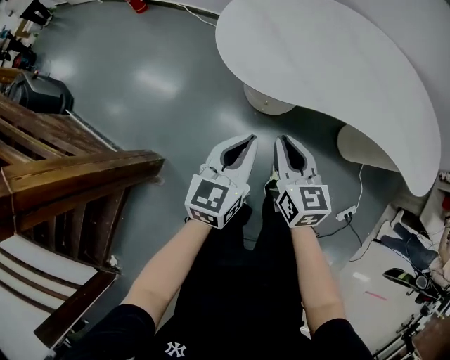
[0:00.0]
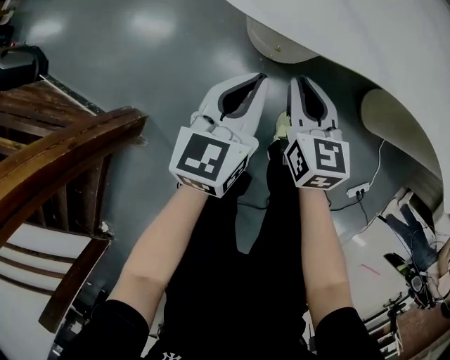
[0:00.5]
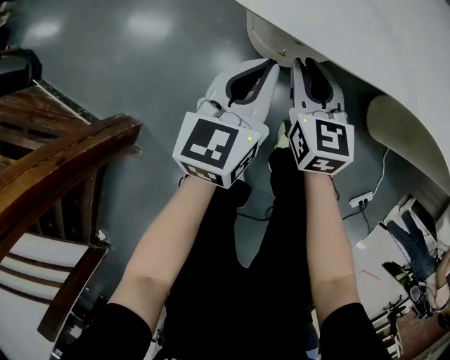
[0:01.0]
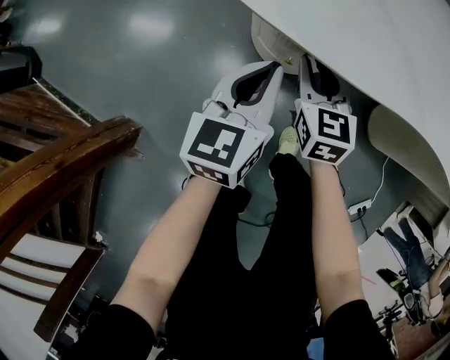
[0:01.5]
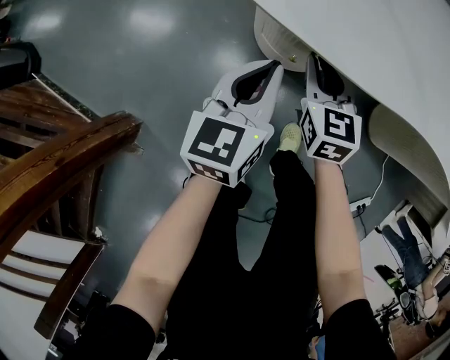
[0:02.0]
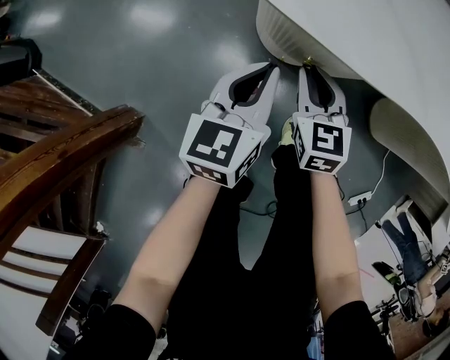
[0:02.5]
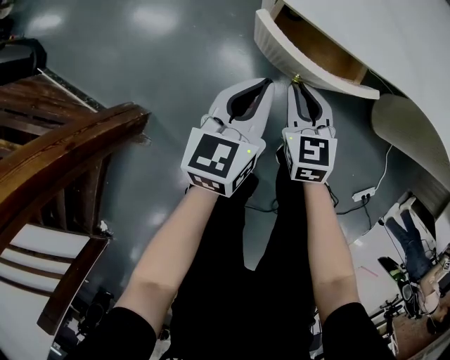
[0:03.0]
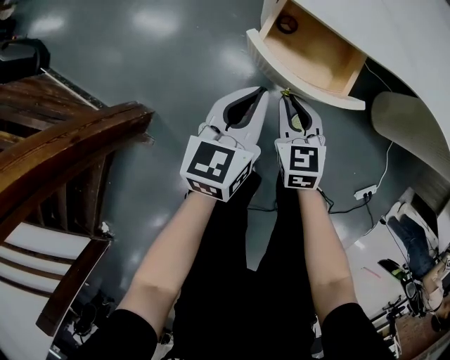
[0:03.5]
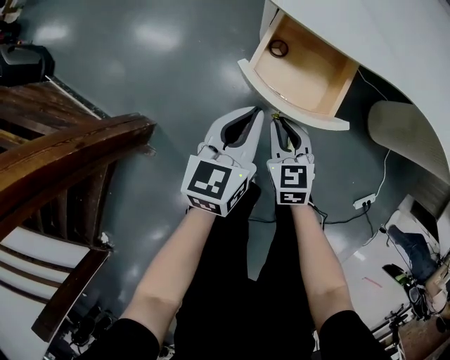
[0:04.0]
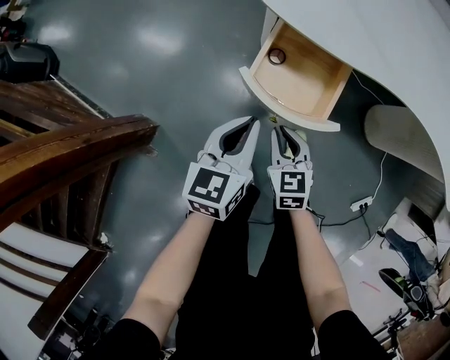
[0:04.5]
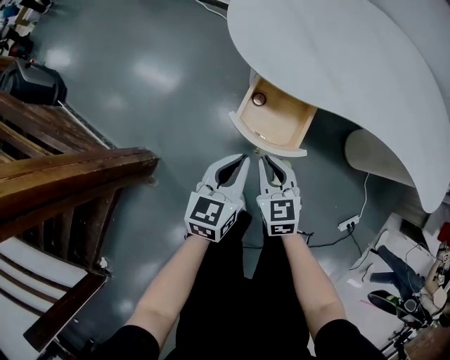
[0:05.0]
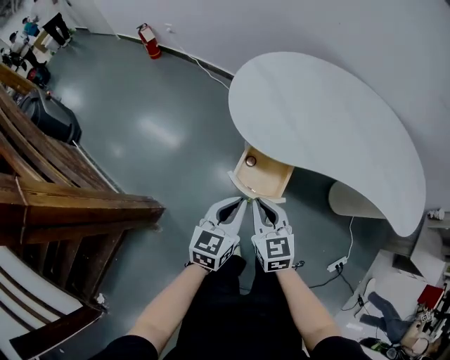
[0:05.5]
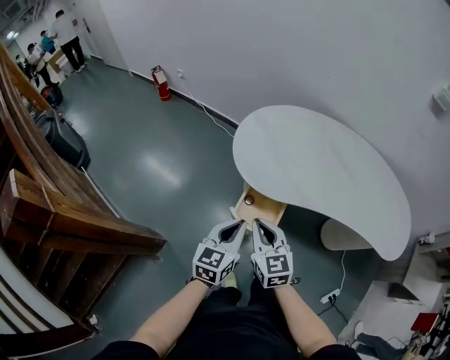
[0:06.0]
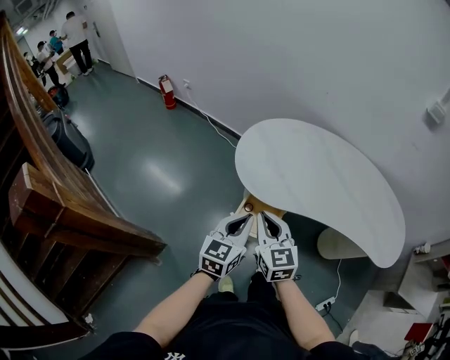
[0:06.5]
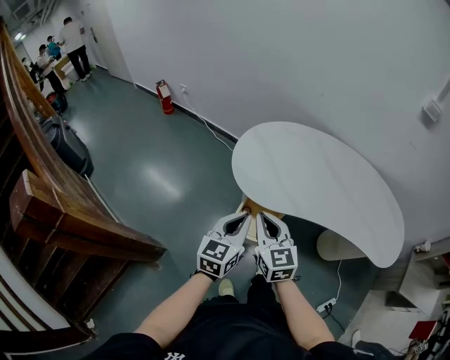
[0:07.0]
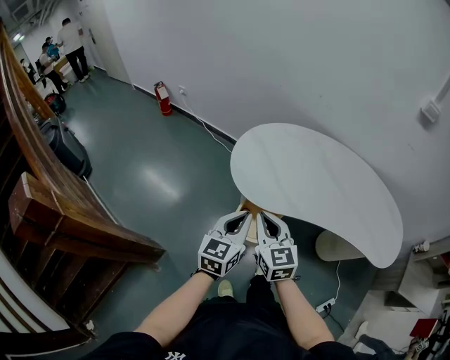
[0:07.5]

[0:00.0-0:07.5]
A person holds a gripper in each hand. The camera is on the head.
0:00.0 to 0:02.0: Both grippers travel together downward and forward, approximately 30 cm.
0:02.0 to 0:04.0: The grippers both shift backward by some 20 cm.
0:04.0 to 0:05.5: Both grippers travel together upward, about 25 cm.
0:05.5 to 0:07.5: The two grippers go approximately 15 cm upward.

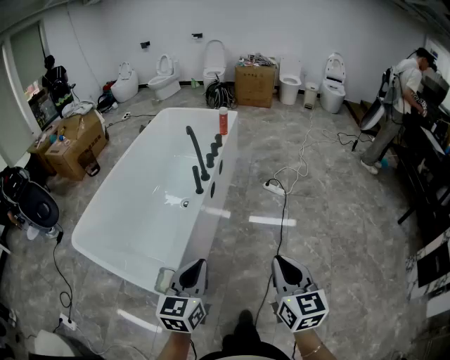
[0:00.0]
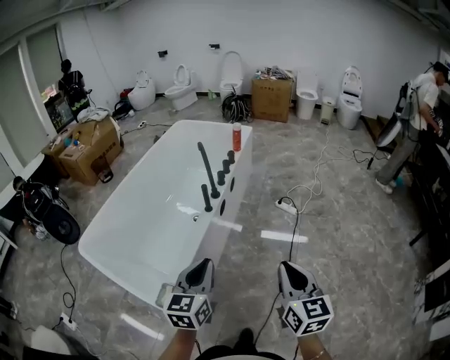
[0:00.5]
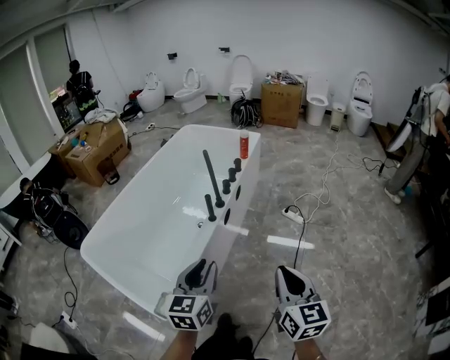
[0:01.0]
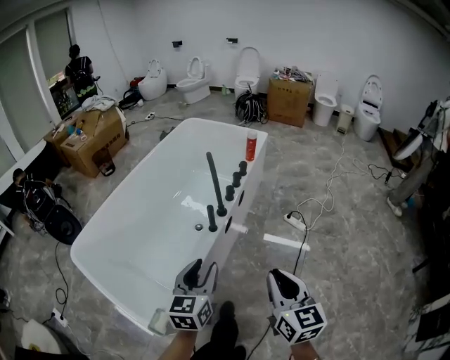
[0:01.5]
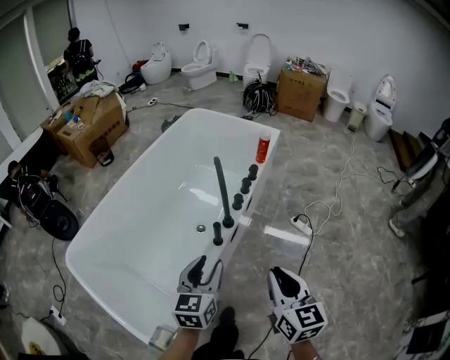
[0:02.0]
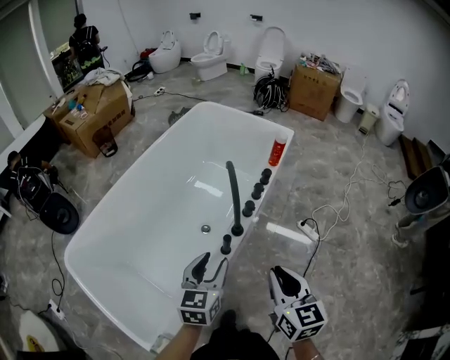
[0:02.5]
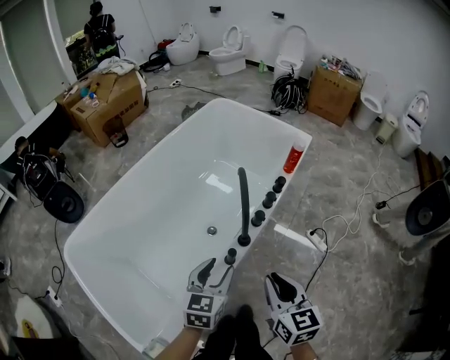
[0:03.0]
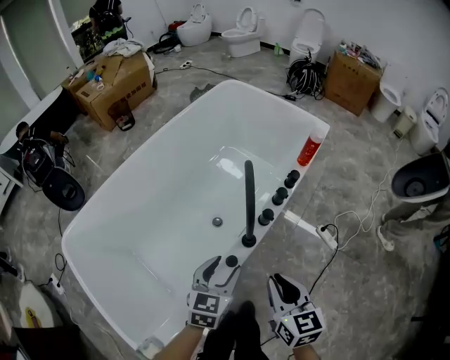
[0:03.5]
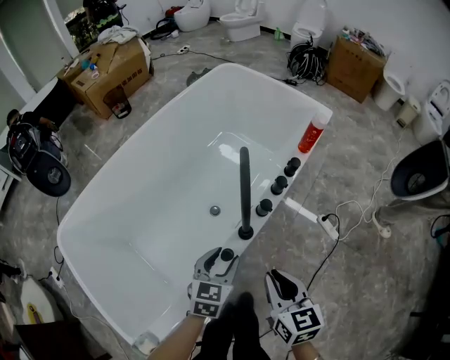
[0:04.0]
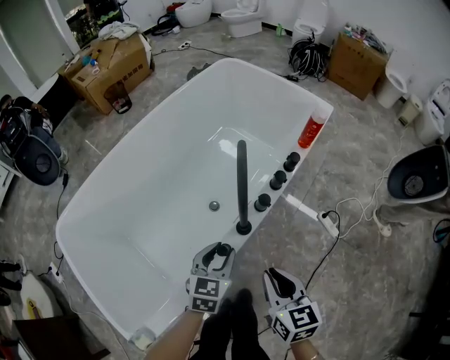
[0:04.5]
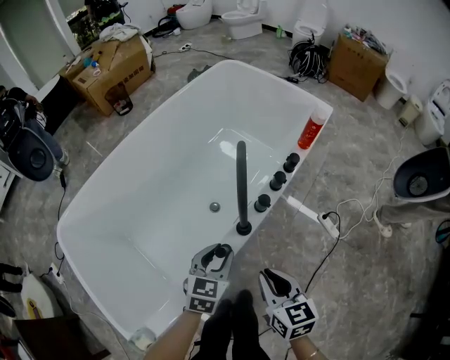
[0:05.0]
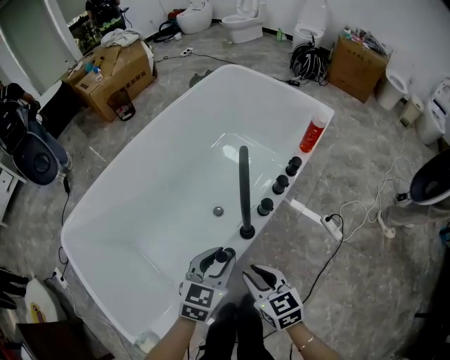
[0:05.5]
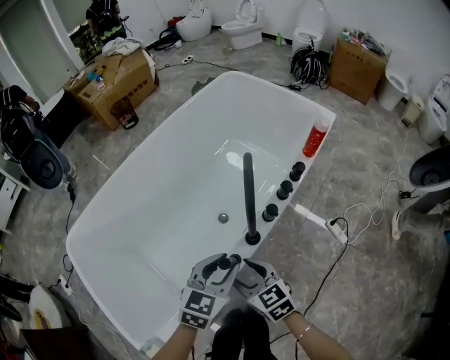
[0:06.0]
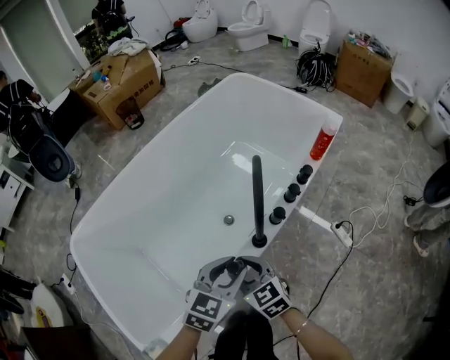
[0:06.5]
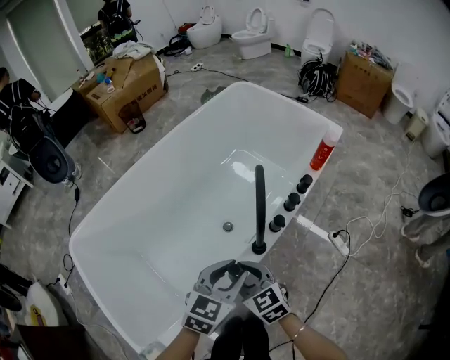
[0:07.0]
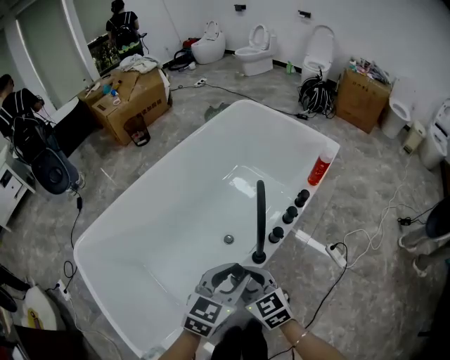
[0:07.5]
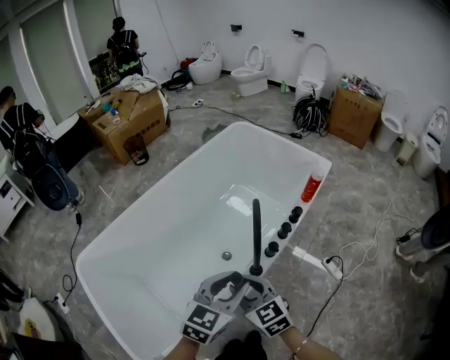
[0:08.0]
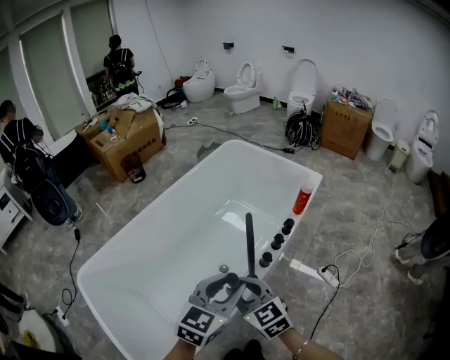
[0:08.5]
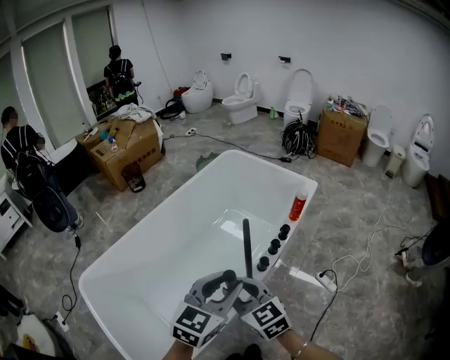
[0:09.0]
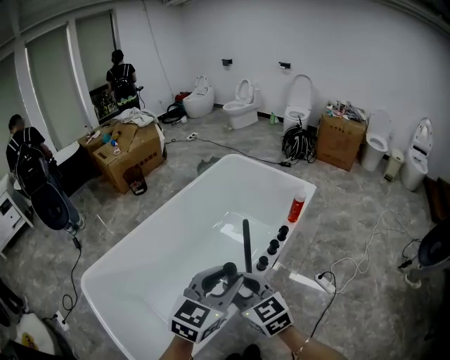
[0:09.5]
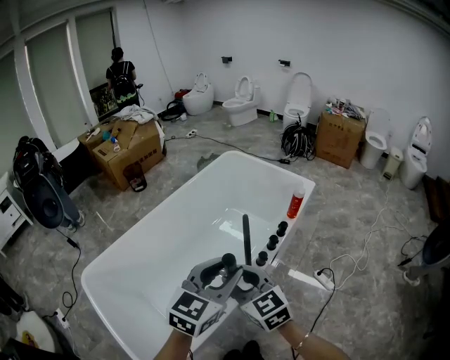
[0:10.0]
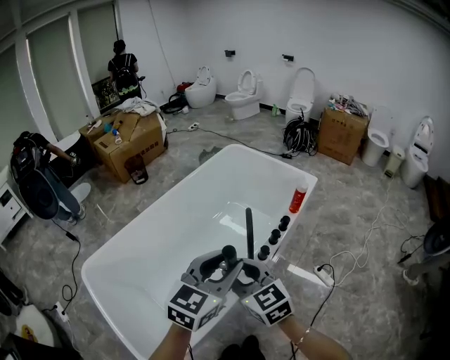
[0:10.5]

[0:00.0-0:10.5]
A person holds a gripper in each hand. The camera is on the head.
0:00.0 to 0:02.0: The two grippers travel together, forward, about 50 cm. The left gripper opens its fingers.
0:02.0 to 0:04.0: Both grippers move forward and downward, approximately 35 cm. The right gripper turns by approximately 20 degrees.
0:04.0 to 0:06.5: The right gripper travels to the left, downward and forward by roughly 15 cm, swivels roughly 30 degrees, and opens.
0:06.5 to 0:08.5: Both grippers travel together upward, some 25 cm.
0:08.5 to 0:10.5: The two grippers go some 10 cm upward and backward.

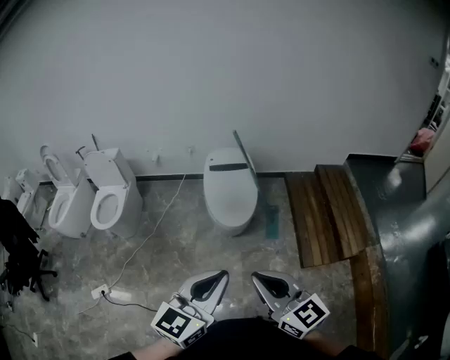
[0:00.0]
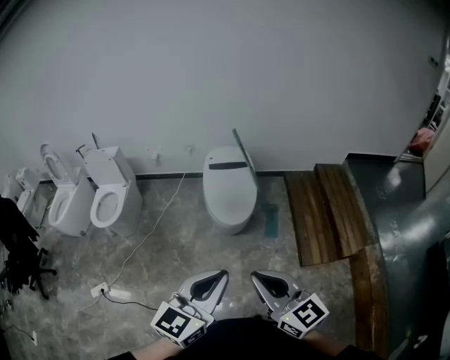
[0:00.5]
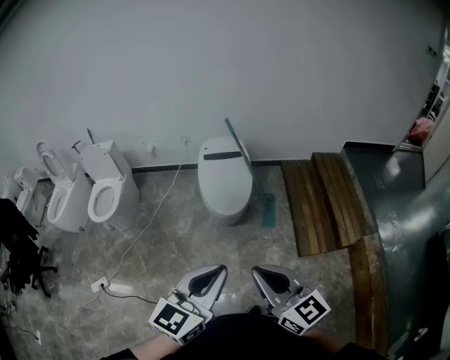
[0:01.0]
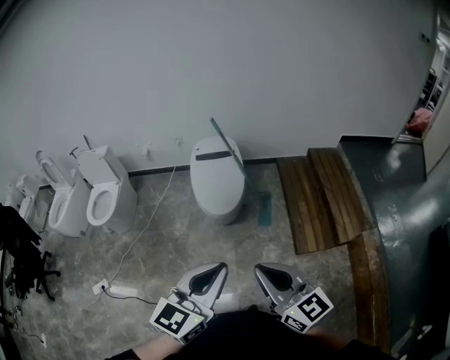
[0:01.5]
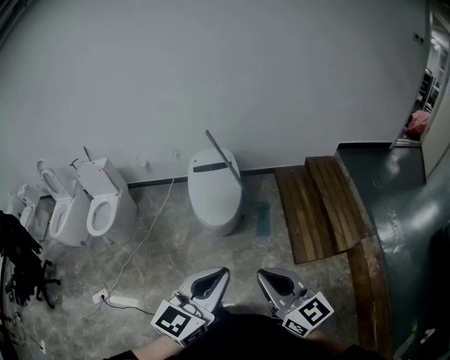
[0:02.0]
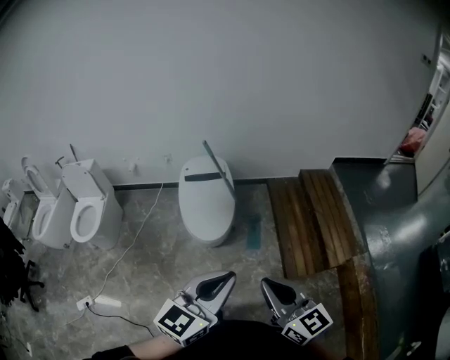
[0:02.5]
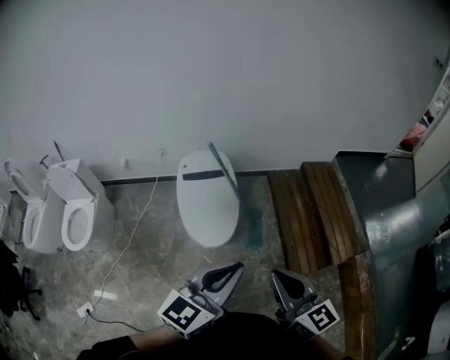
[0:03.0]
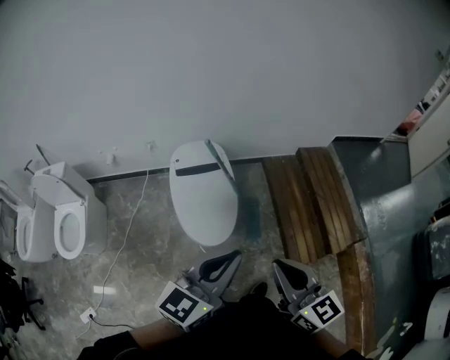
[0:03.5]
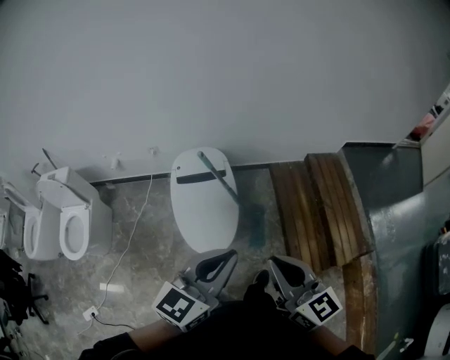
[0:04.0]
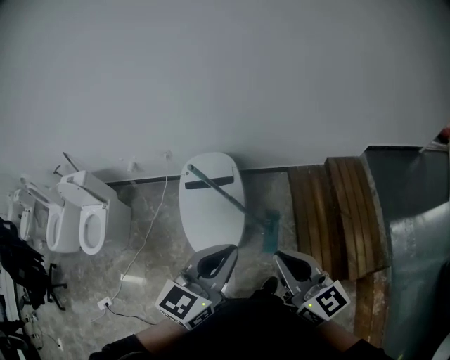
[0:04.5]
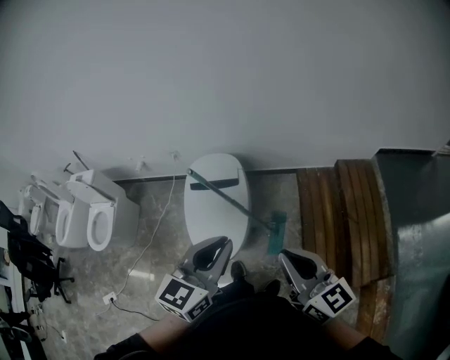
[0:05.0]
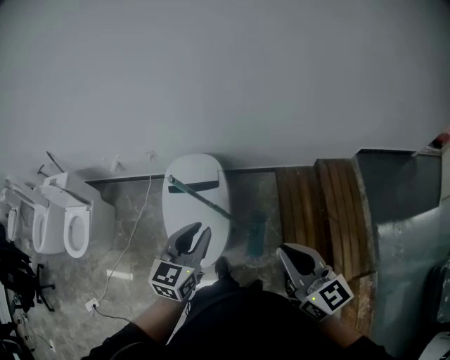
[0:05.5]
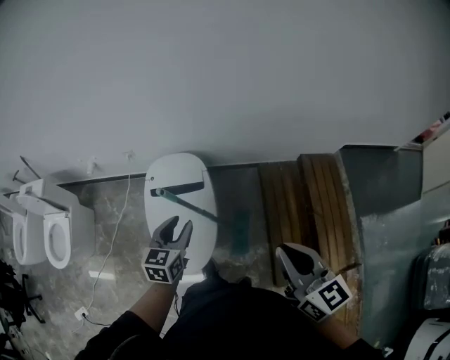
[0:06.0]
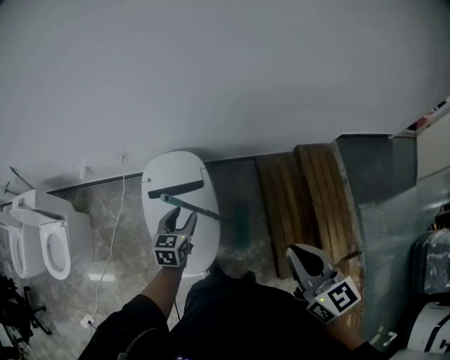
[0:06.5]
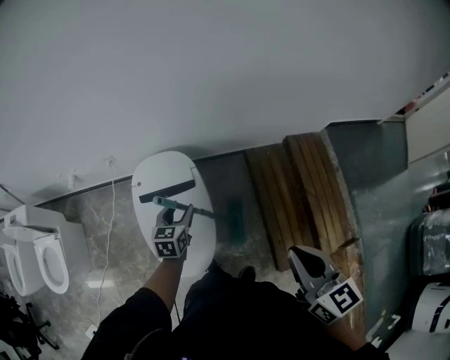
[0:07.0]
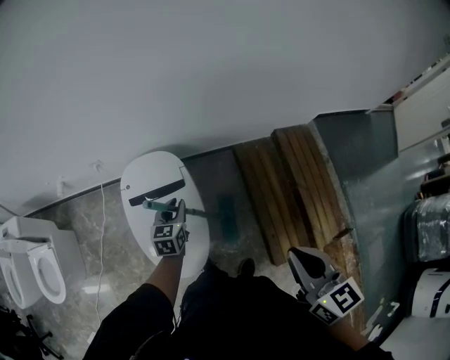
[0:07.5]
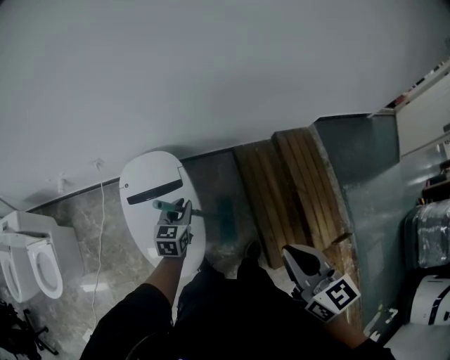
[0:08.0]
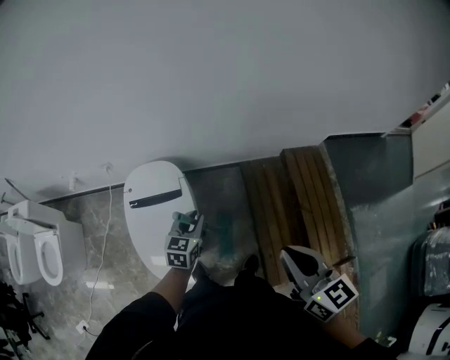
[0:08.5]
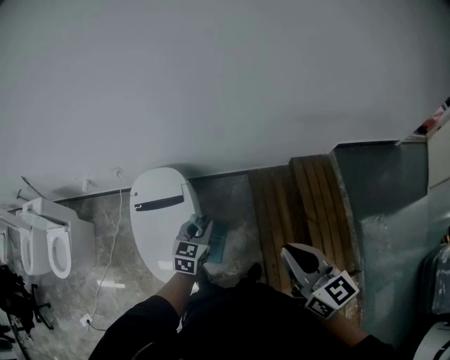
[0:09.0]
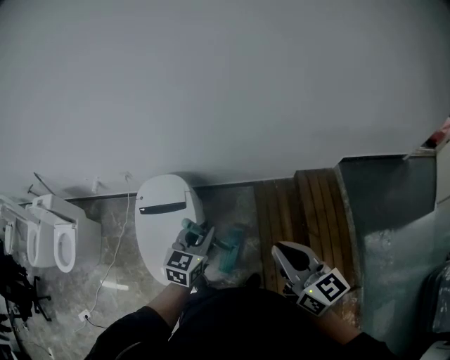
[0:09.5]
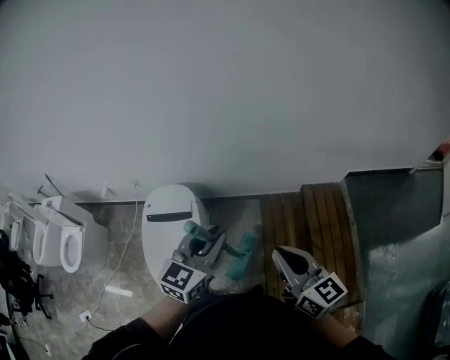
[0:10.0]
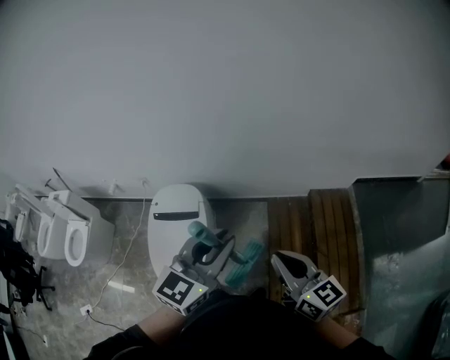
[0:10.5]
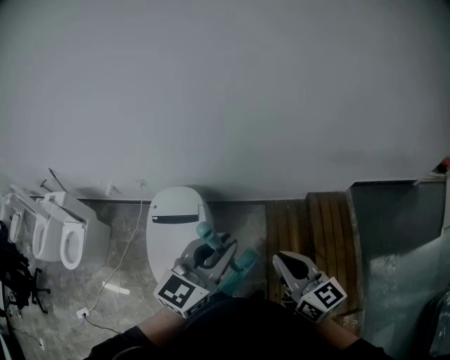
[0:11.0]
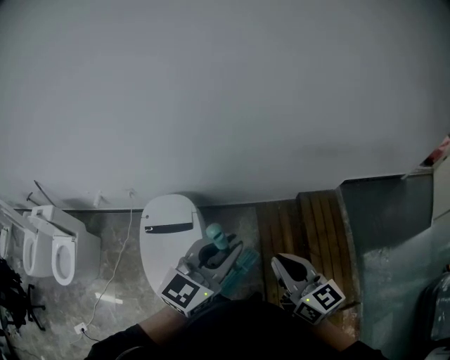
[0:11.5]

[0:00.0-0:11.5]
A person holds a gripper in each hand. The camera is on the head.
0:00.0 to 0:02.0: Both grippers travel together to the right, roughly 10 cm.
0:02.0 to 0:04.0: Both grippers move forward, roughly 35 cm.
0:04.0 to 0:06.0: The right gripper travels forward and to the right by some 20 cm. Meanwhile the left gripper heads forward and downward, covering some 30 cm, changes its angle by approximately 30 degrees, and opens up.
0:06.0 to 0:07.5: The left gripper heads downward and forward, covering some 15 cm.
0:07.5 to 0:09.5: The right gripper shifts some 15 cm to the right, and swivels approximately 30 degrees, while the left gripper goes about 25 cm to the right and upward.
0:09.5 to 0:11.5: The left gripper heads upward, covering about 20 cm, and swivels roughly 20 degrees. Meanwhile the right gripper changes place by some 5 cm.
